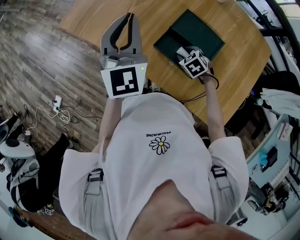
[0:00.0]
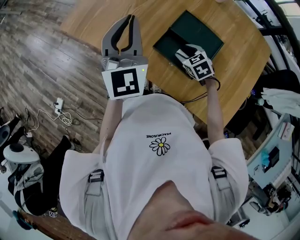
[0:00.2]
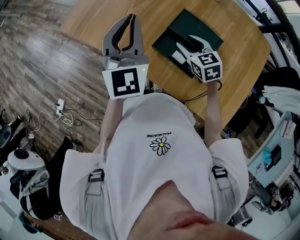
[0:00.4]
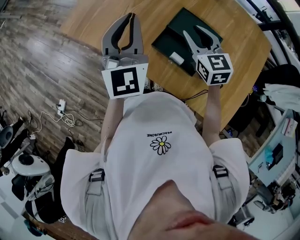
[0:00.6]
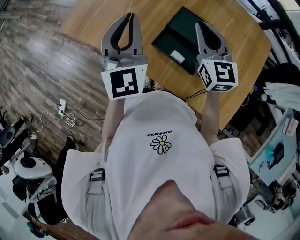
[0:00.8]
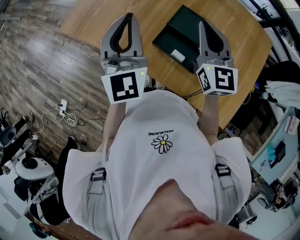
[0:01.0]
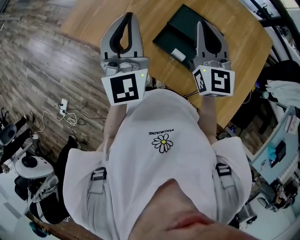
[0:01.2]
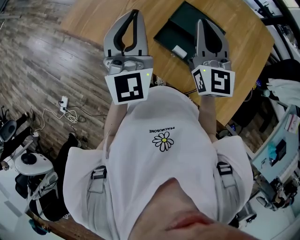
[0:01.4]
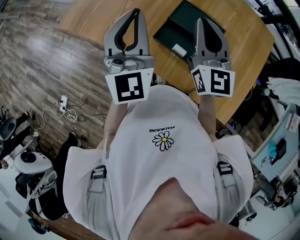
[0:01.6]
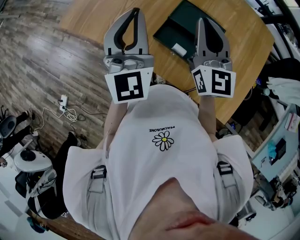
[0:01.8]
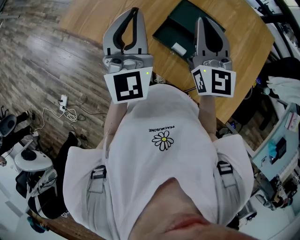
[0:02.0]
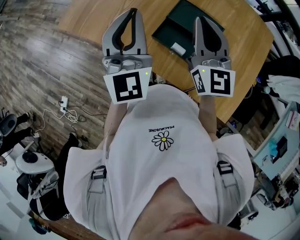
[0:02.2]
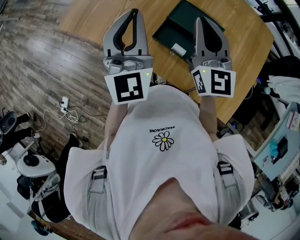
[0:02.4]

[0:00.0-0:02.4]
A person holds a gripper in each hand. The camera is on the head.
0:00.0 to 0:01.2: The right gripper moves upward, about 30 cm, tilts its fingers roughly 70 degrees upward, and closes its fingers.
0:01.2 to 0:02.4: The grippers move only a little.

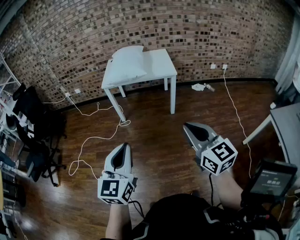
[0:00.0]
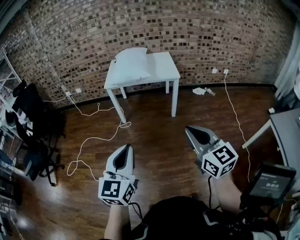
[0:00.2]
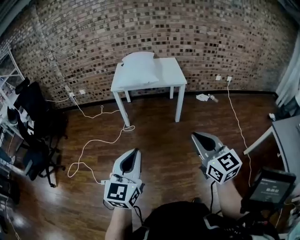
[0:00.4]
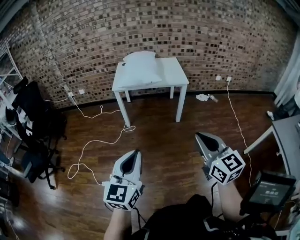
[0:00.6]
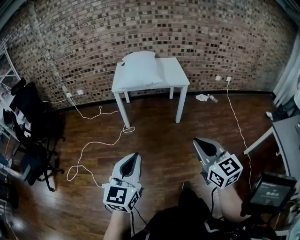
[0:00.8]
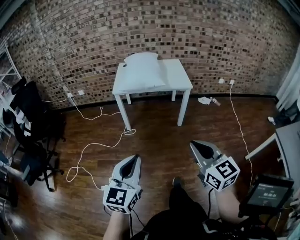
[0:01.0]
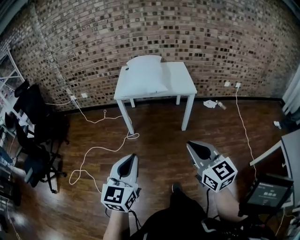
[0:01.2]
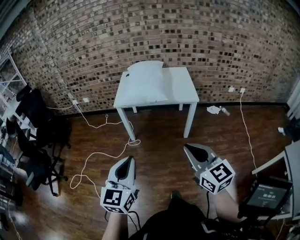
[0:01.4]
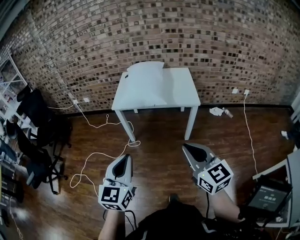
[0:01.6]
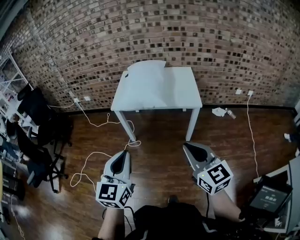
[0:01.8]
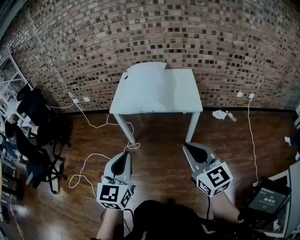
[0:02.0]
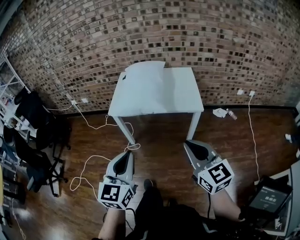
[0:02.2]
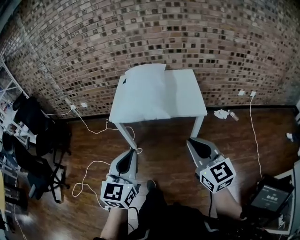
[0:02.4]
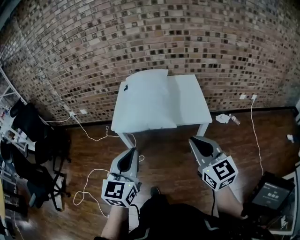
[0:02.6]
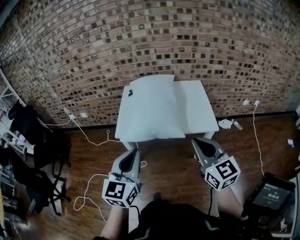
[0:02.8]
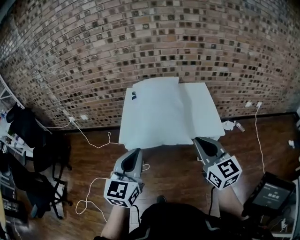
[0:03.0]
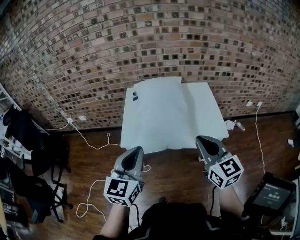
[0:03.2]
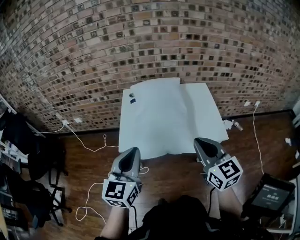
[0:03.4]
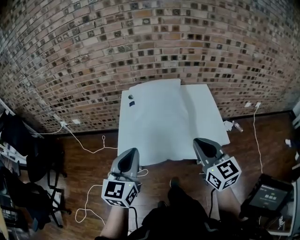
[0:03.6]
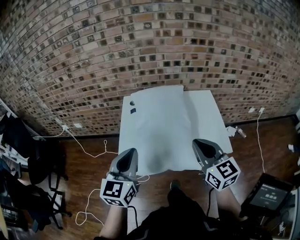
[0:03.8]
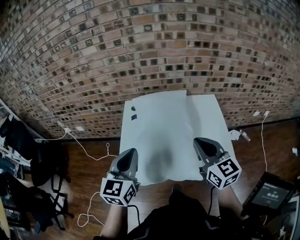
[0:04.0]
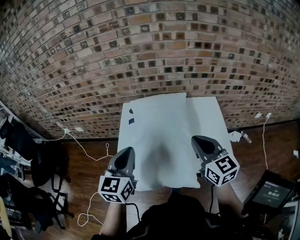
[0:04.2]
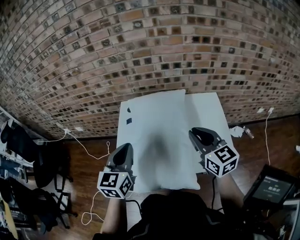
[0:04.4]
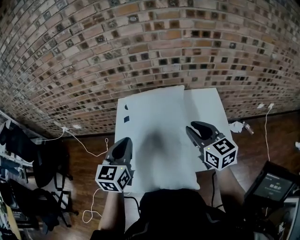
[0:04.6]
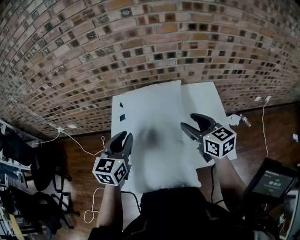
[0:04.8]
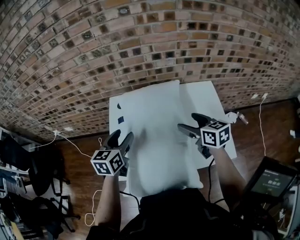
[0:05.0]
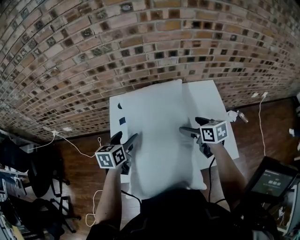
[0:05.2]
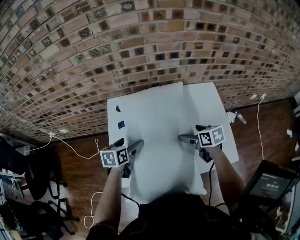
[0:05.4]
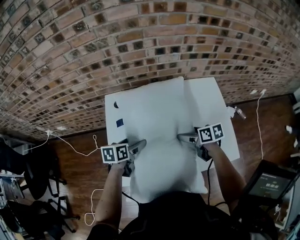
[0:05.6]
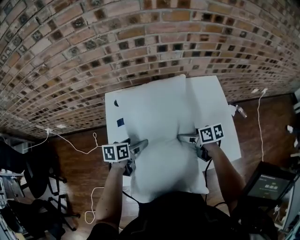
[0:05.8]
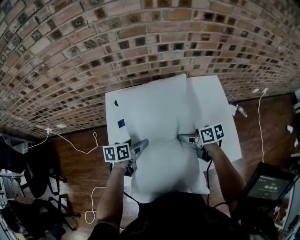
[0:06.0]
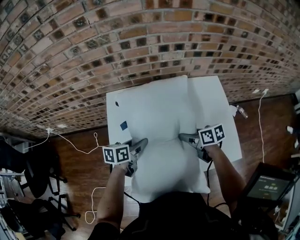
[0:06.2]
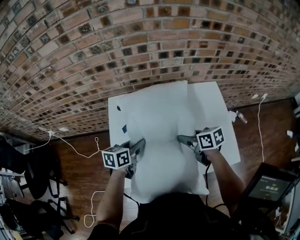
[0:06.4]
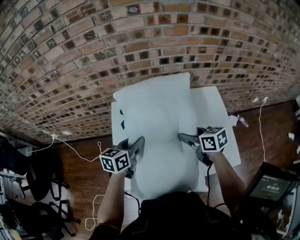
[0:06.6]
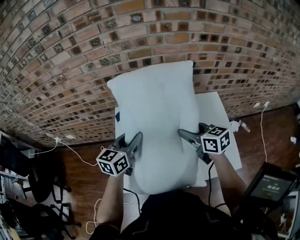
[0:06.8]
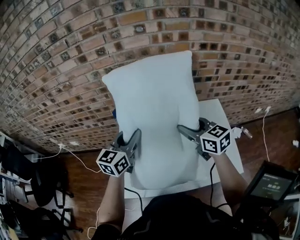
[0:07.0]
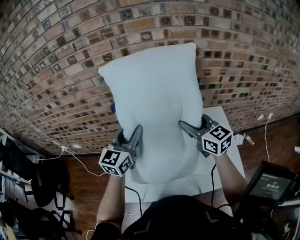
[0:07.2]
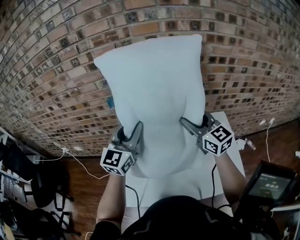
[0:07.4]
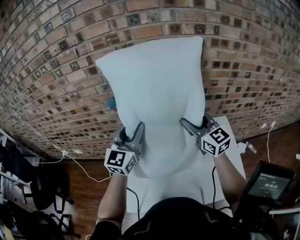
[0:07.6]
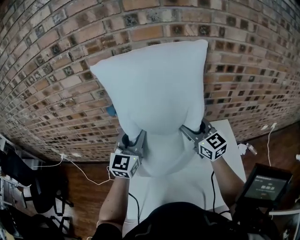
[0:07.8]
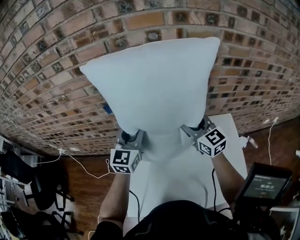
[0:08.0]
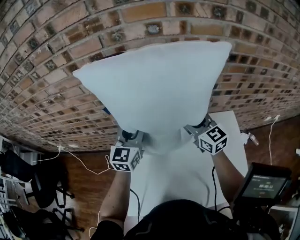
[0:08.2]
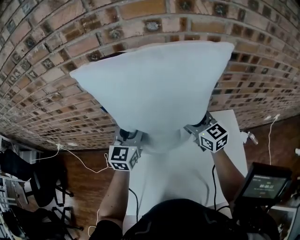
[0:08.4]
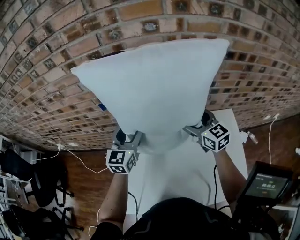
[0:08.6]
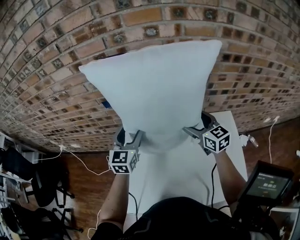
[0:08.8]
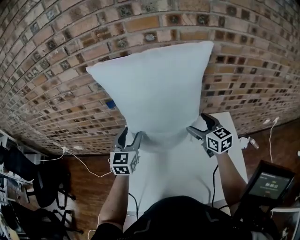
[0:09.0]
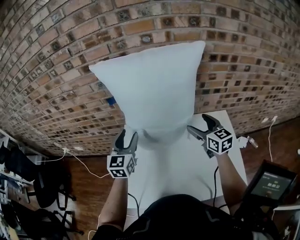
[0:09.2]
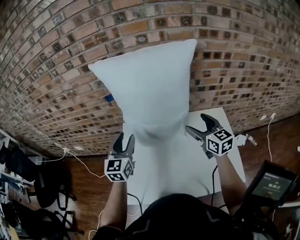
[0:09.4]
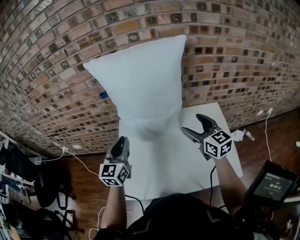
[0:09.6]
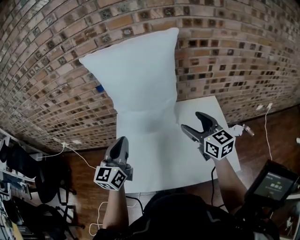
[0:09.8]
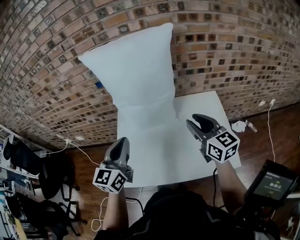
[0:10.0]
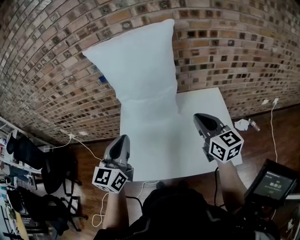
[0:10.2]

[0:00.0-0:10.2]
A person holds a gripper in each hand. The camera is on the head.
0:00.0 to 0:01.4: The left gripper travels forward by approximately 20 cm. Meanwhile the right gripper goes approximately 20 cm forward and to the left.
0:01.4 to 0:03.0: Both grippers are carried forward, roughly 40 cm.
0:03.0 to 0:04.4: The two grippers go roughly 30 cm forward.
0:04.4 to 0:05.8: The left gripper travels downward and forward by roughly 30 cm, swivels about 50 degrees, and opens up; the right gripper shifts approximately 25 cm downward, swivels approximately 60 degrees, and opens.
0:05.8 to 0:07.2: The grippers both shift upward by roughly 30 cm. The right gripper rolls counterclockwise, seen from behind, by about 50 degrees, and closes its fingers, while the left gripper tips its fingers upward by about 40 degrees, and closes.
0:07.2 to 0:08.8: Both grippers travel together forward and downward, some 15 cm. The right gripper opens its fingers.
0:08.8 to 0:10.2: Both grippers travel together backward, some 25 cm. The left gripper closes its fingers. The right gripper closes up.

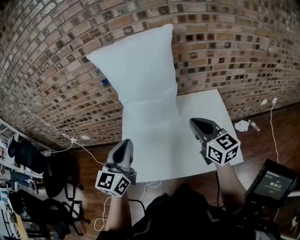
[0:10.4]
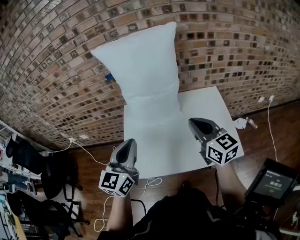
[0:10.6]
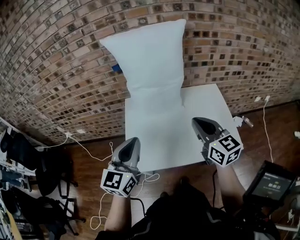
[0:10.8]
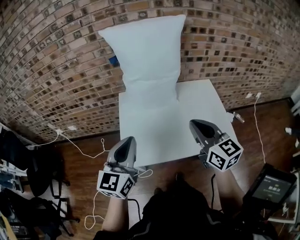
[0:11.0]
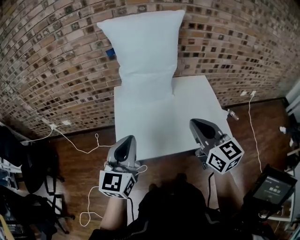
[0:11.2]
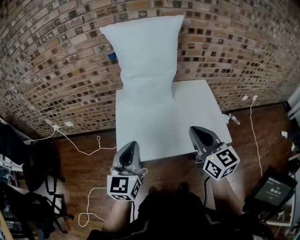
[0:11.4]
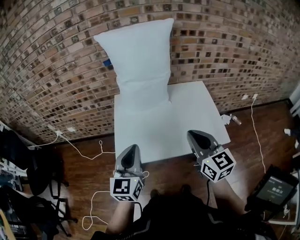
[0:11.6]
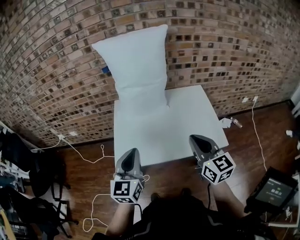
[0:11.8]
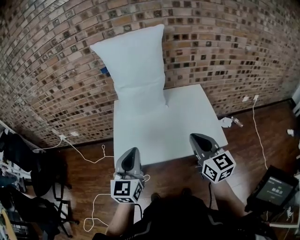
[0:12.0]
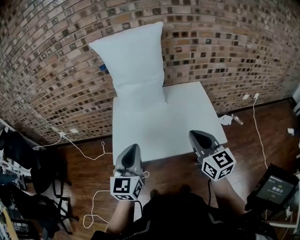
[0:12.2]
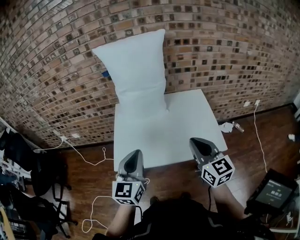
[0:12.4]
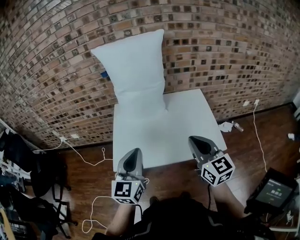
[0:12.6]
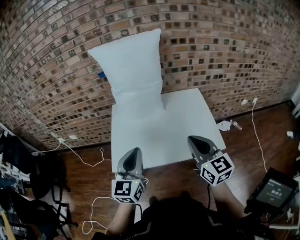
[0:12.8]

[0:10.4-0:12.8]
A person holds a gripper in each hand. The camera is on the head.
0:10.4 to 0:11.6: The left gripper travels backward and downward by roughly 15 cm, while the right gripper travels backward by about 15 cm.
0:11.6 to 0:12.8: Both grippers move to the right, roughly 5 cm.

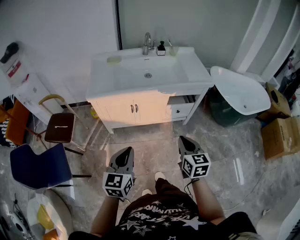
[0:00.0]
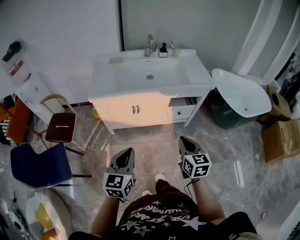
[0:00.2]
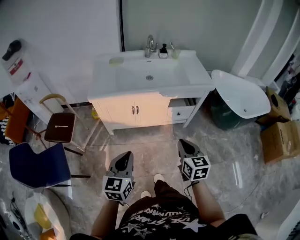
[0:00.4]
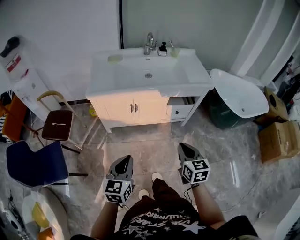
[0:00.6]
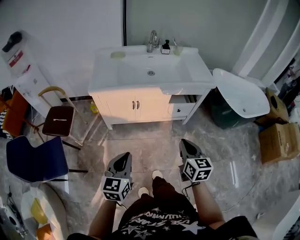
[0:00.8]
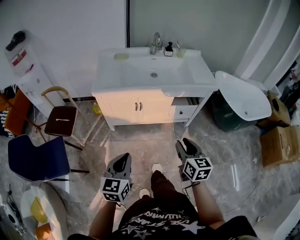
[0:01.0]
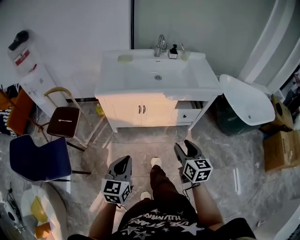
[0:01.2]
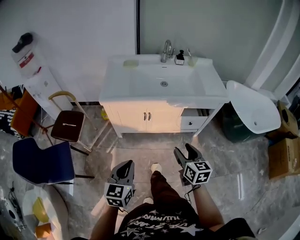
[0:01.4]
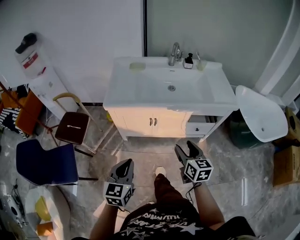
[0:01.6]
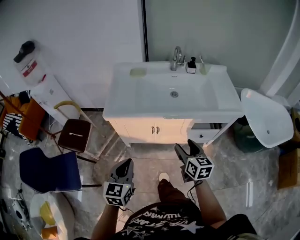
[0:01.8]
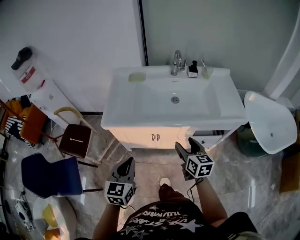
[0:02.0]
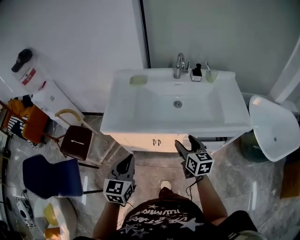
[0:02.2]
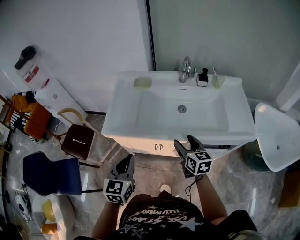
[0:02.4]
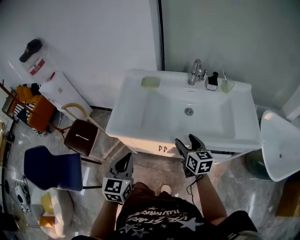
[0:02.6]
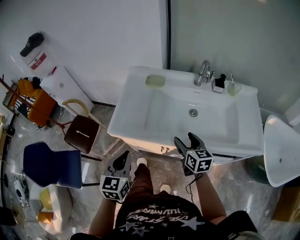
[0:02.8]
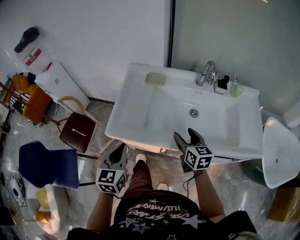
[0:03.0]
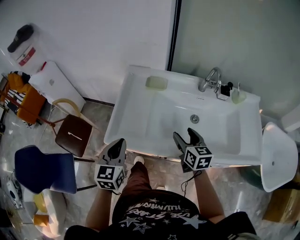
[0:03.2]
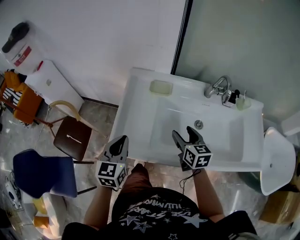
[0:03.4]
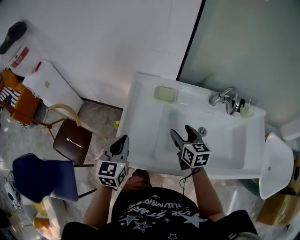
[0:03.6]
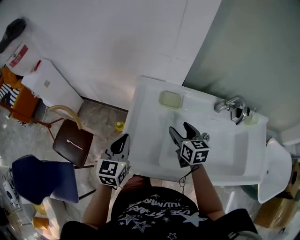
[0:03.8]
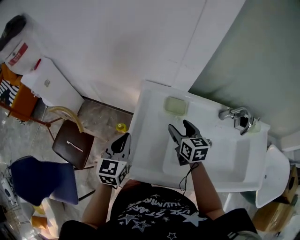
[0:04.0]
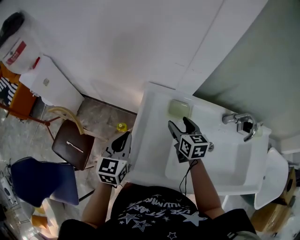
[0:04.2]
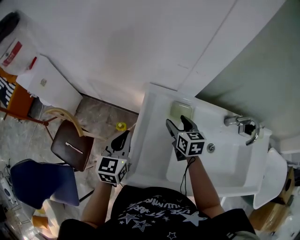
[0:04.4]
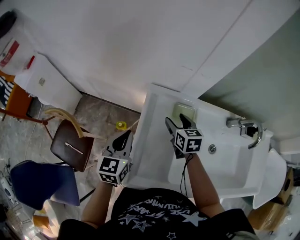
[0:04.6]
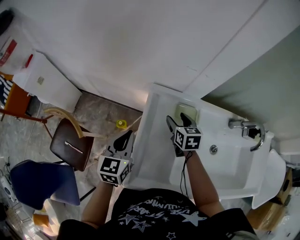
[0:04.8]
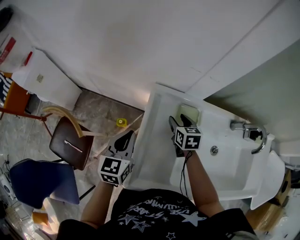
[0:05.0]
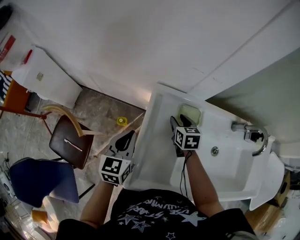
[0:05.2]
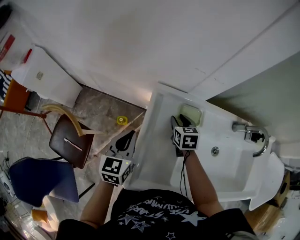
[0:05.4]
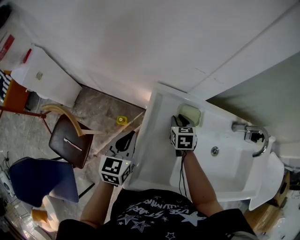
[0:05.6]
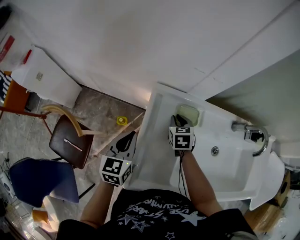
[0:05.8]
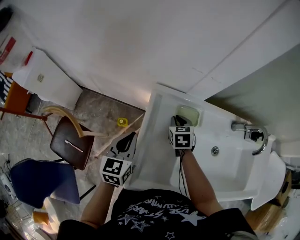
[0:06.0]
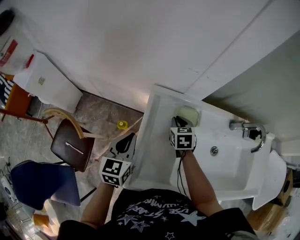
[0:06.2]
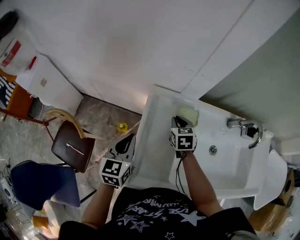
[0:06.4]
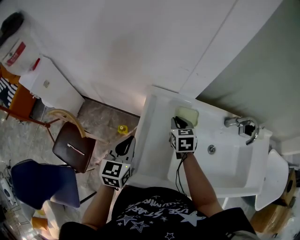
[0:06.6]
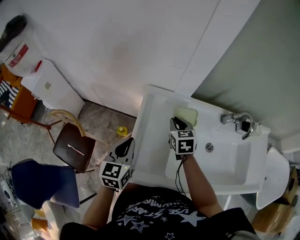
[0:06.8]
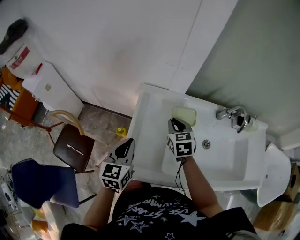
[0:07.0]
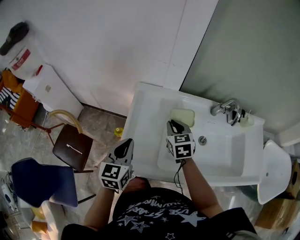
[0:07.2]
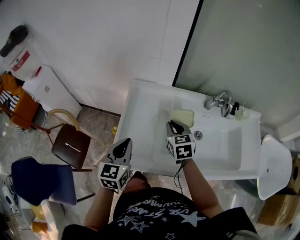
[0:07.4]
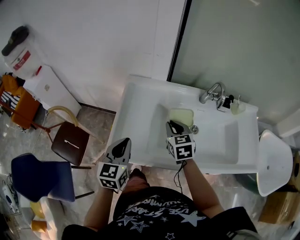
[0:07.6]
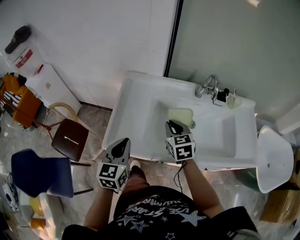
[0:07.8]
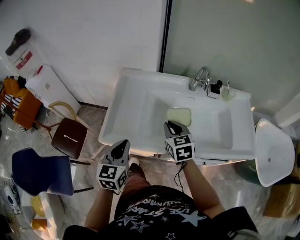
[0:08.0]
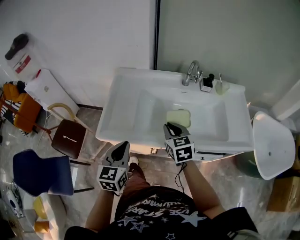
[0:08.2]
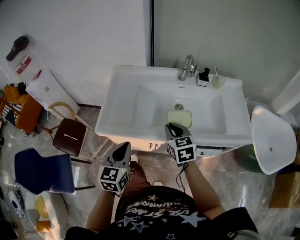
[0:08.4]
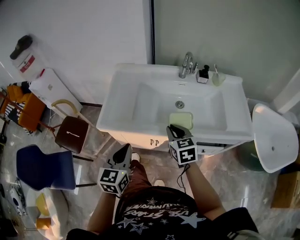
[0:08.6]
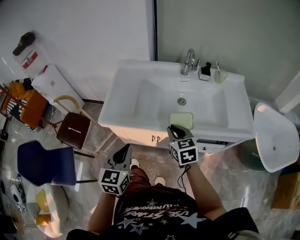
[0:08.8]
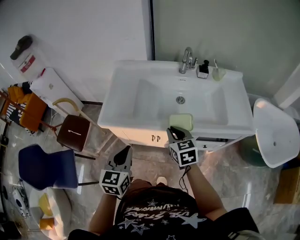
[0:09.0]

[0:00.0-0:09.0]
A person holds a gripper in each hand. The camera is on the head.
0:00.0 to 0:01.6: The left gripper goes some 10 cm to the left and forward. Meanwhile the right gripper travels forward and to the left by some 15 cm, and opens.
0:01.6 to 0:03.0: Both grippers move forward, approximately 35 cm.
0:03.0 to 0:04.4: The left gripper moves forward, approximately 35 cm, while the right gripper moves forward and to the left, approximately 40 cm.
0:04.4 to 0:06.0: The right gripper is displaced downward by approximately 10 cm, changes its angle by roughly 20 degrees, and closes up.
0:06.0 to 0:07.6: The right gripper shifts about 30 cm backward, upward and to the right. The left gripper is displaced backward, to the right and upward by approximately 25 cm.
0:07.6 to 0:09.0: The grippers both shift backward by some 25 cm.
